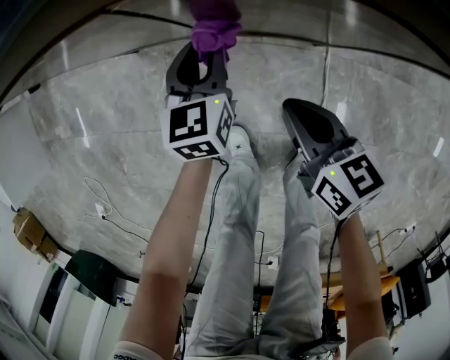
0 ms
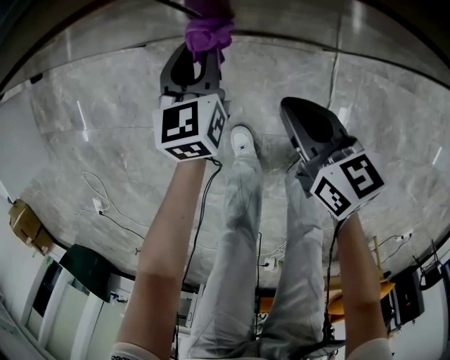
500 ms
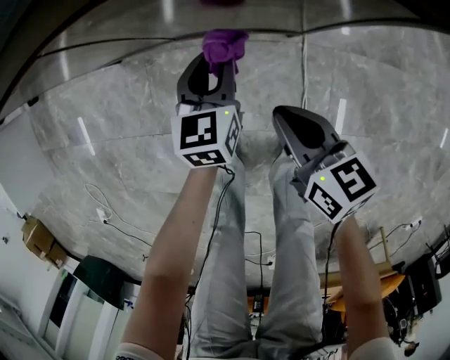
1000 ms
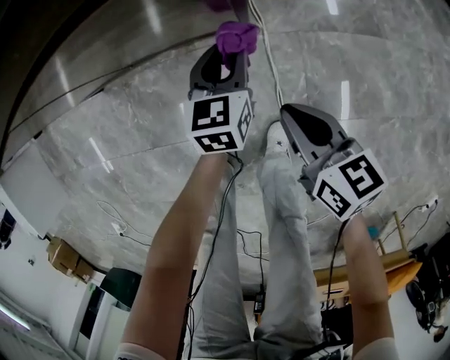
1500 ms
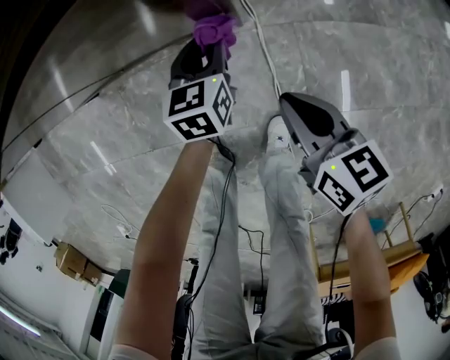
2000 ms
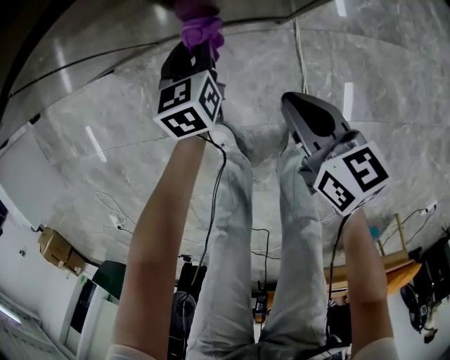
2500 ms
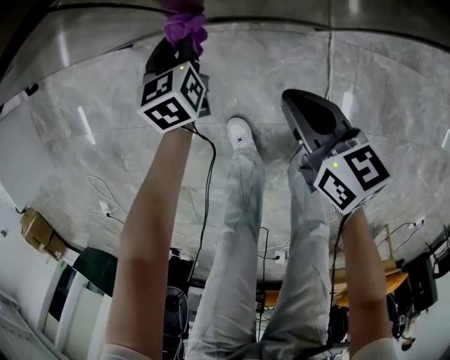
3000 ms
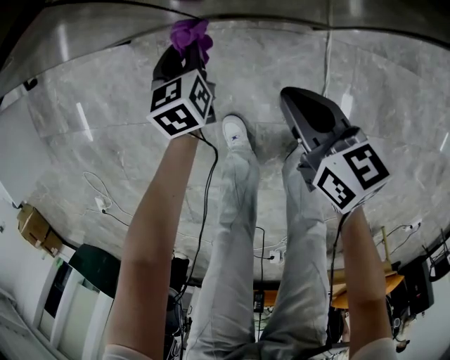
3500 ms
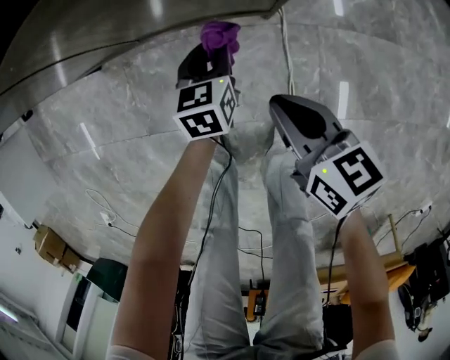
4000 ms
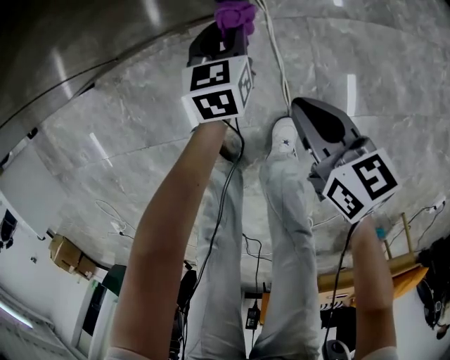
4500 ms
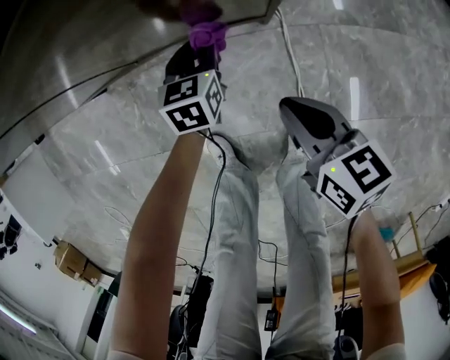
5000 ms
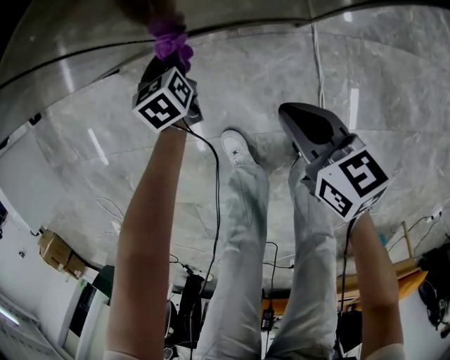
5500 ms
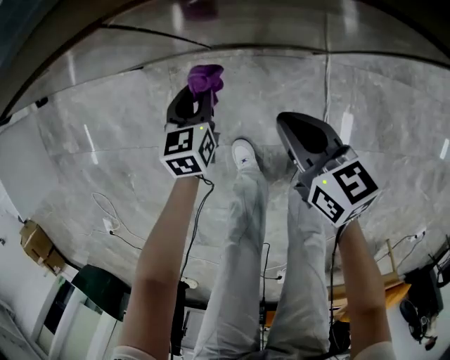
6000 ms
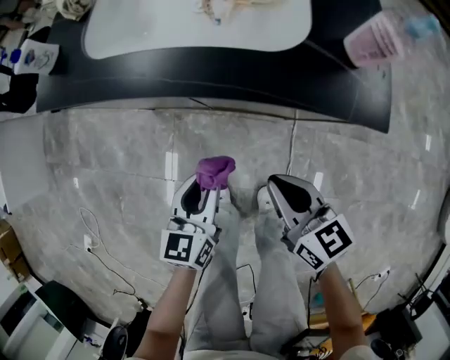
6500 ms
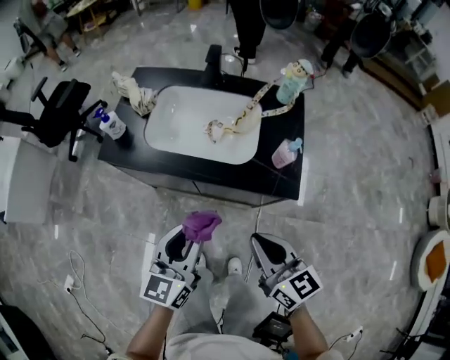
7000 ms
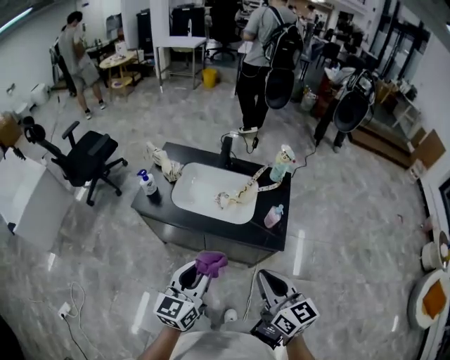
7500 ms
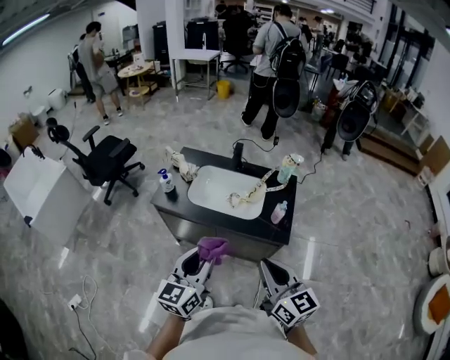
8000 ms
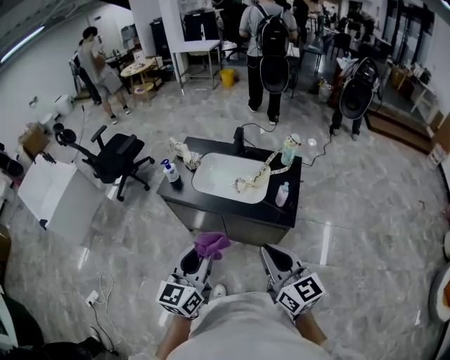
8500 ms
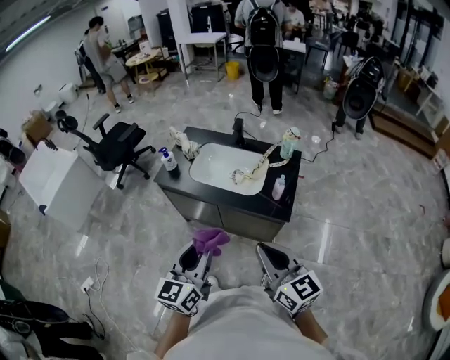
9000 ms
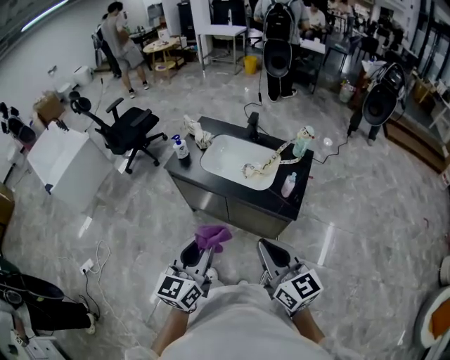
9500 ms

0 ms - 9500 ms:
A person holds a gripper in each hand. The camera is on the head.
0 ms - 2000 ms: The right gripper shifts roughly 25 cm to the right and backward. The left gripper shifts about 25 cm to the right.
2000 ms - 4000 ms: The right gripper heads to the left, covering about 10 cm. The left gripper goes to the left and returns, some 30 cm each way.
4000 ms - 5500 ms: The left gripper travels to the left and forward by roughly 20 cm. The right gripper shifts about 10 cm to the left.
5500 ms - 7500 ms: Both grippers move upward, roughly 70 cm. The right gripper swivels some 40 degrees. Meanwhile the left gripper angles its fingers upward, by about 40 degrees.
7500 ms - 9500 ms: Both grippers move backward and upward, about 15 cm.

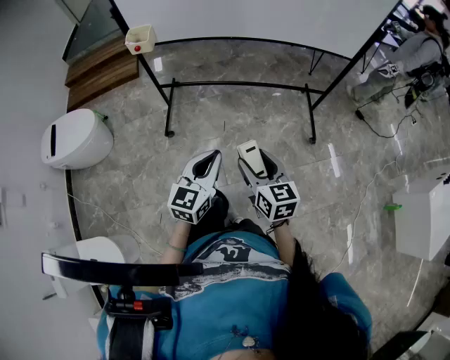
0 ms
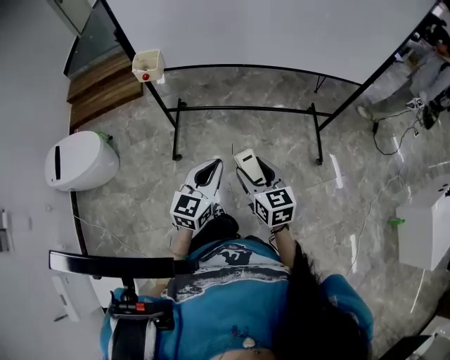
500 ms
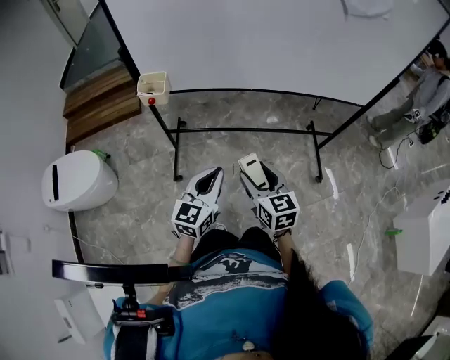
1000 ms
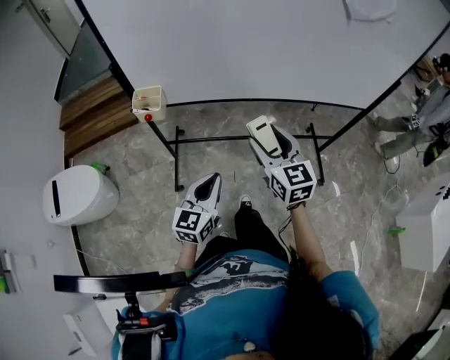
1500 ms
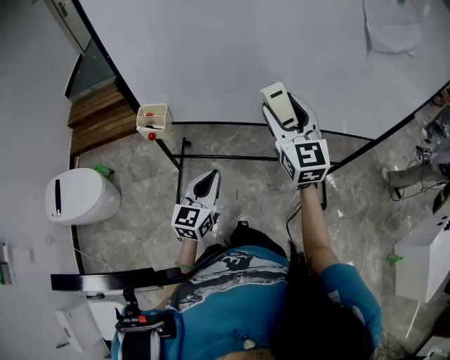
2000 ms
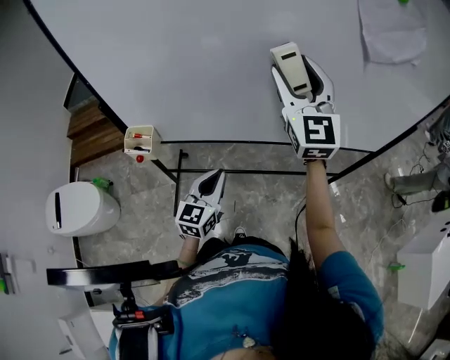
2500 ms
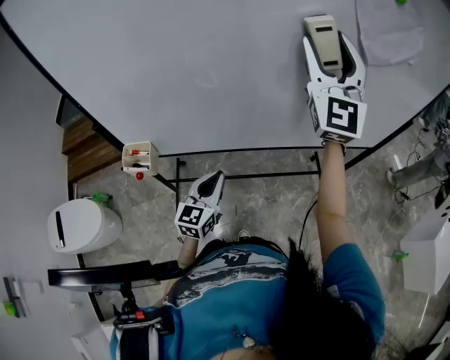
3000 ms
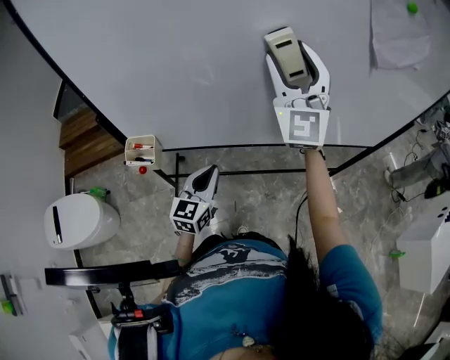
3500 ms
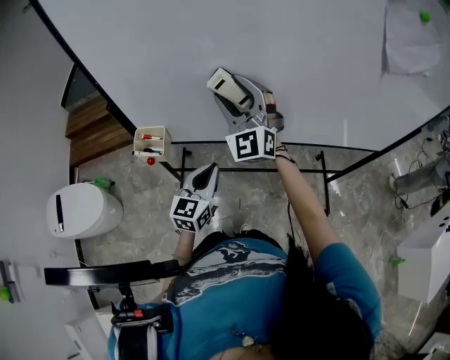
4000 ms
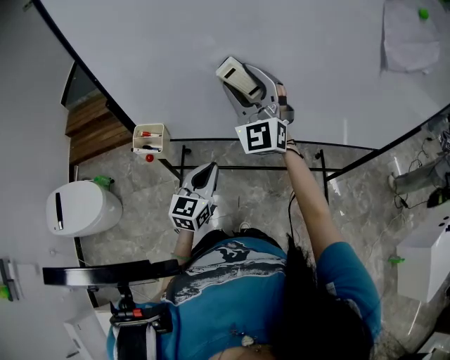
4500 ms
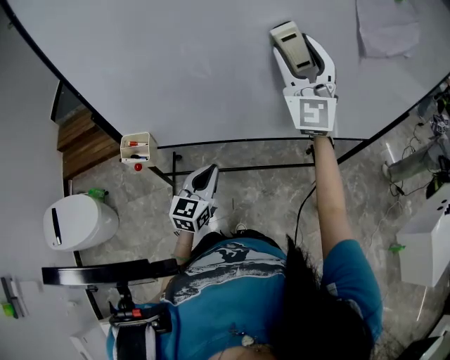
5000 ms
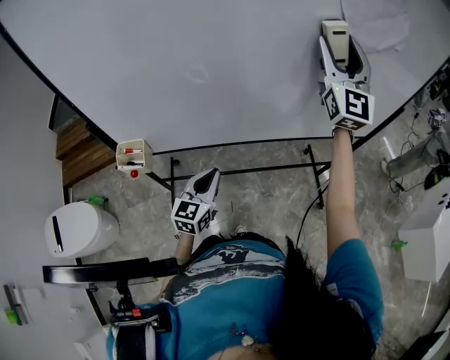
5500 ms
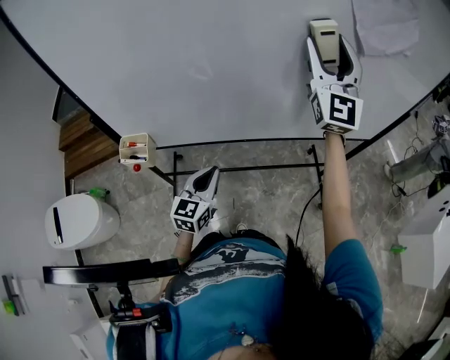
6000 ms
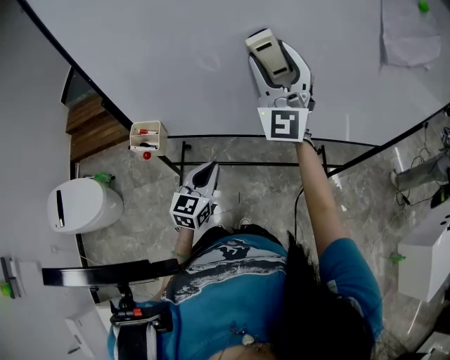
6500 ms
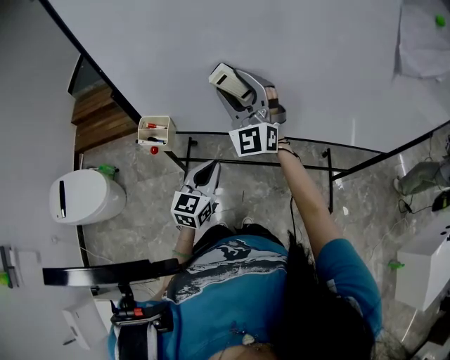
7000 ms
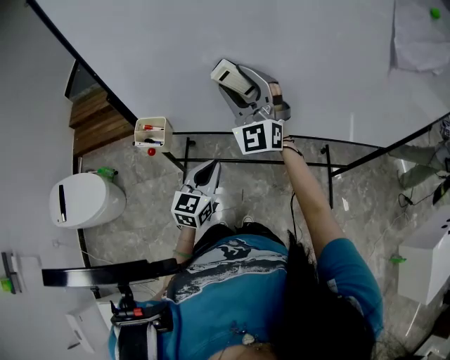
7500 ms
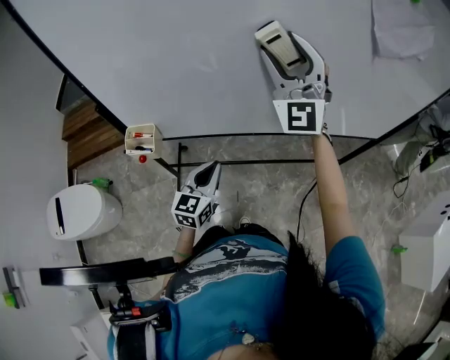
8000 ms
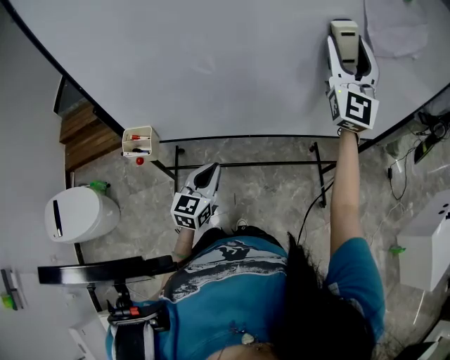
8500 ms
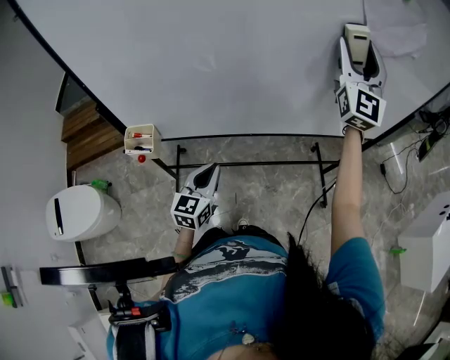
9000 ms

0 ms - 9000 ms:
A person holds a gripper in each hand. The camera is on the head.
0 ms - 2000 ms: The left gripper is displaced forward and to the left by approximately 25 cm; the right gripper shifts roughly 40 cm forward and upward, and changes its angle by approximately 40 degrees.
2000 ms - 4500 ms: The left gripper goes roughly 10 cm forward; the right gripper is displaced forward and to the left by roughly 15 cm, and changes its angle by about 30 degrees.
4500 ms - 7000 ms: The right gripper reaches about 30 cm to the right, then returns, while the left gripper reaches some 5 cm to the right, then returns.
7000 ms - 9000 ms: The right gripper shifts about 40 cm to the right and upward, and changes its angle by approximately 40 degrees.

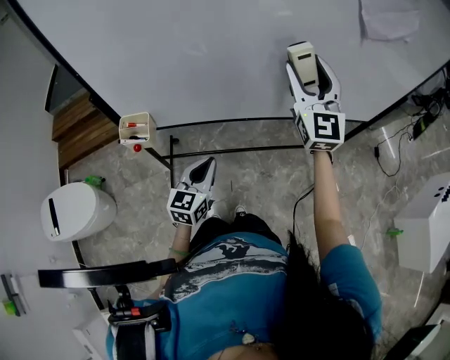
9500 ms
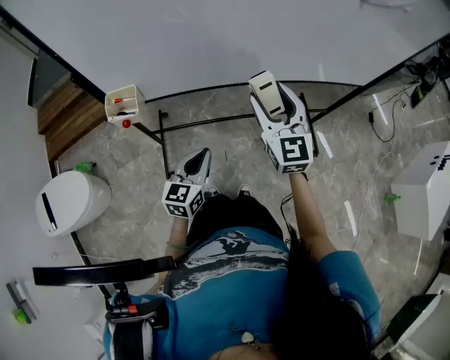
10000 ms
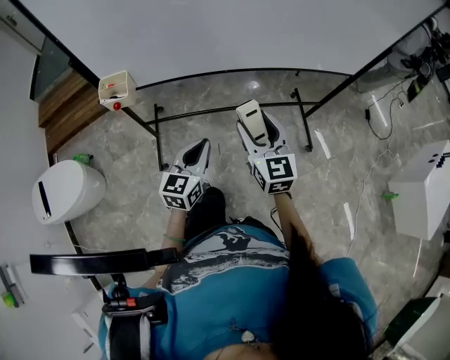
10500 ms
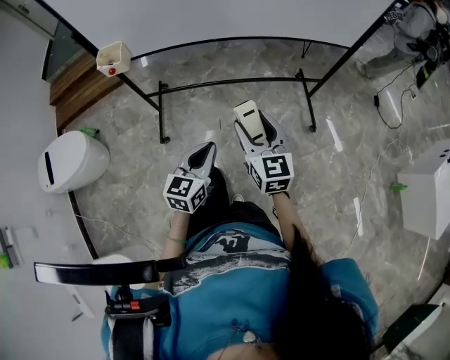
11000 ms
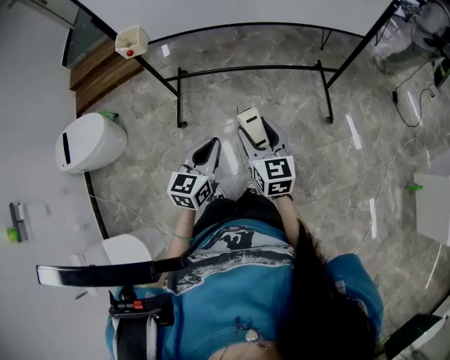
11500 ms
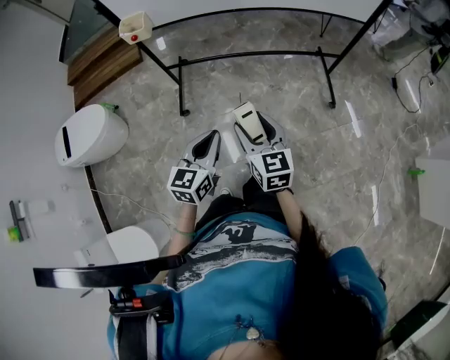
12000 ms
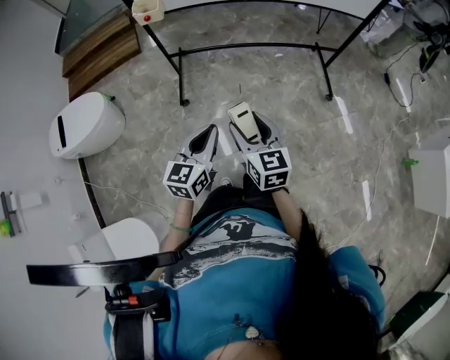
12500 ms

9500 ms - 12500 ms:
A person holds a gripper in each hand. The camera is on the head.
9500 ms - 11000 ms: The right gripper moves backward and downward, some 40 cm, and rotates roughly 40 degrees; the left gripper is displaced backward and to the right by about 30 cm.
11000 ms - 12500 ms: Both grippers move backward and to the left, approximately 25 cm.

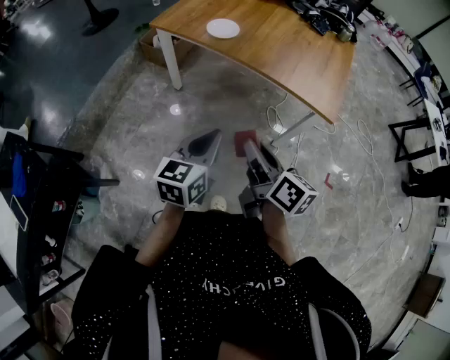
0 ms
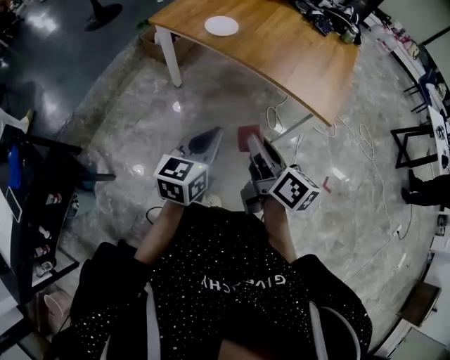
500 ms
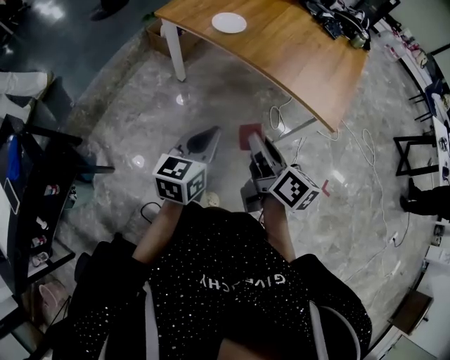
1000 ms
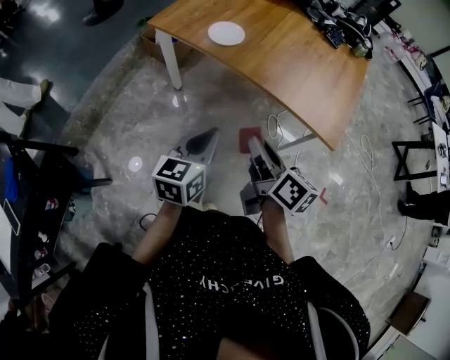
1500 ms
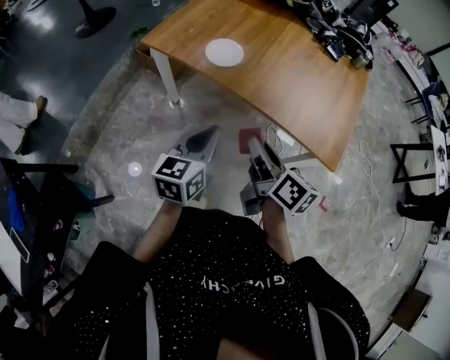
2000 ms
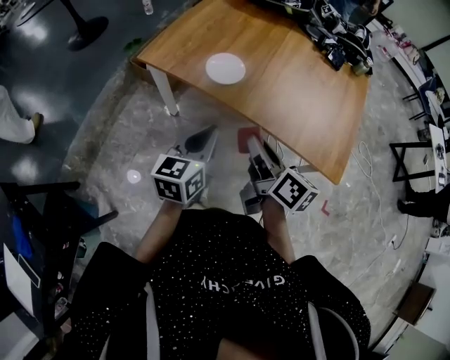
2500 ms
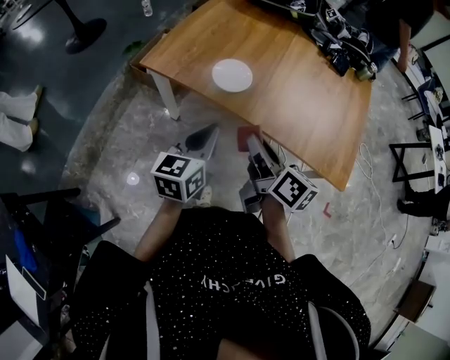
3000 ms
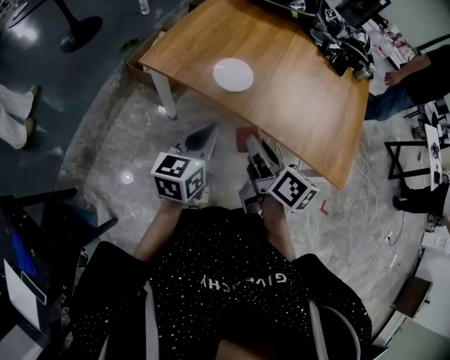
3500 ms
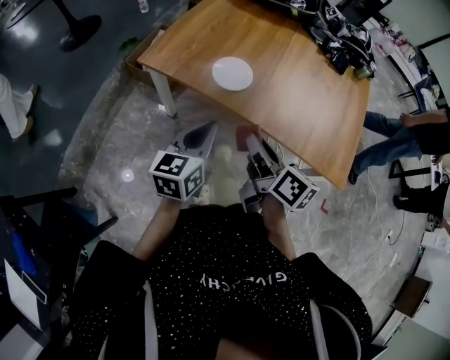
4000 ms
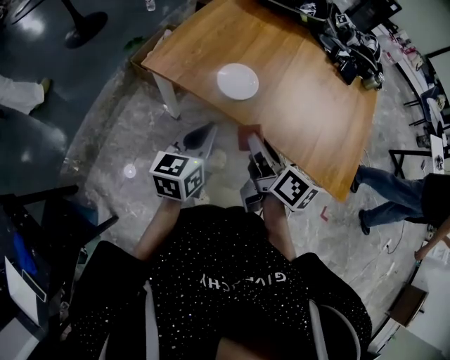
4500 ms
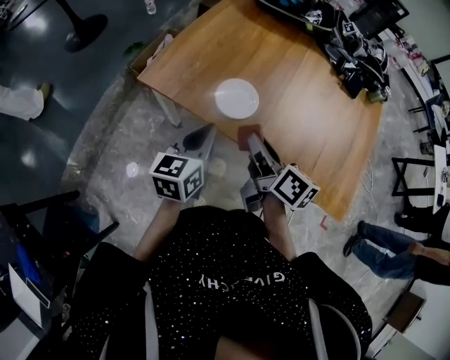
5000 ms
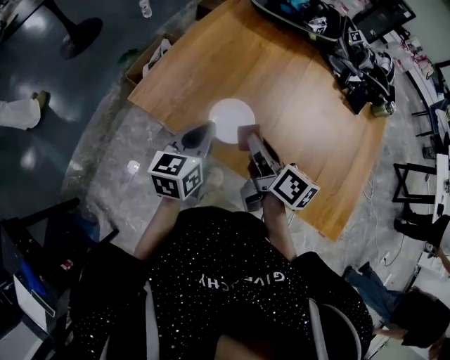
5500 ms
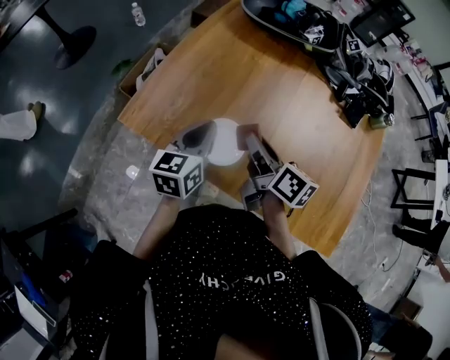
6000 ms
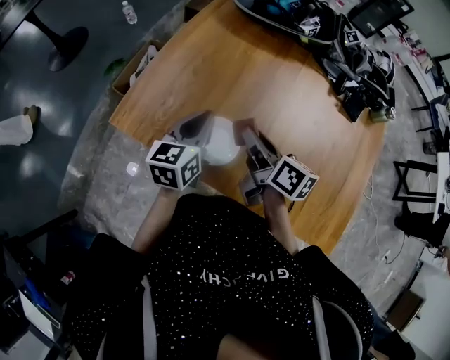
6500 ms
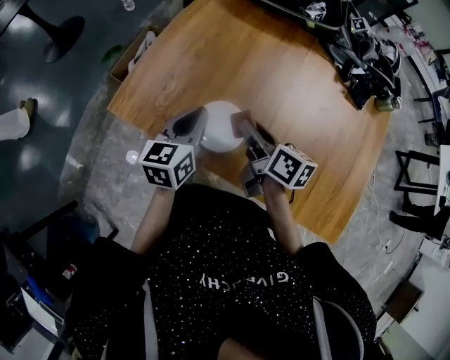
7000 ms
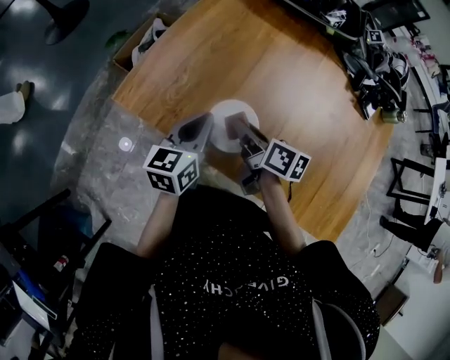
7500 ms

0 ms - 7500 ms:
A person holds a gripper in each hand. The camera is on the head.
0 ms - 2000 ms: Both grippers travel together forward, approximately 20 cm.
2000 ms - 4000 ms: The grippers both shift forward and to the left by approximately 15 cm.
4000 ms - 5500 ms: Both grippers travel together forward, roughly 20 cm.
5500 ms - 7500 ms: The left gripper goes roughly 10 cm forward and downward, while the right gripper shifts roughly 15 cm downward and forward.
